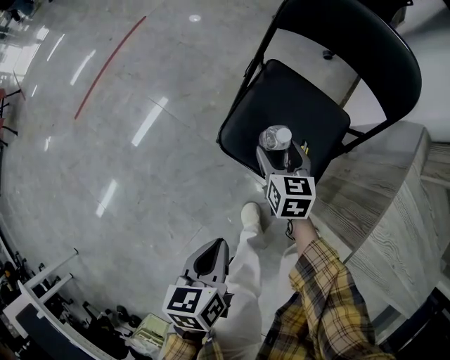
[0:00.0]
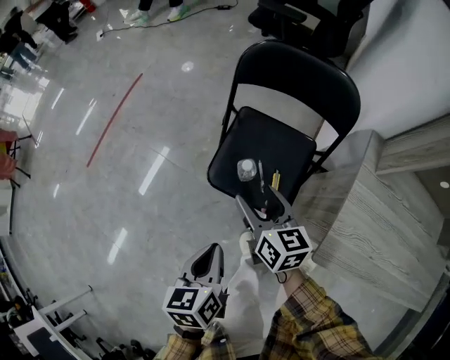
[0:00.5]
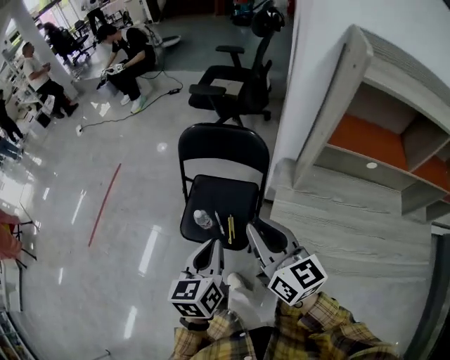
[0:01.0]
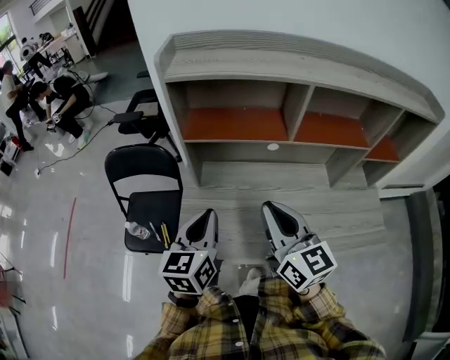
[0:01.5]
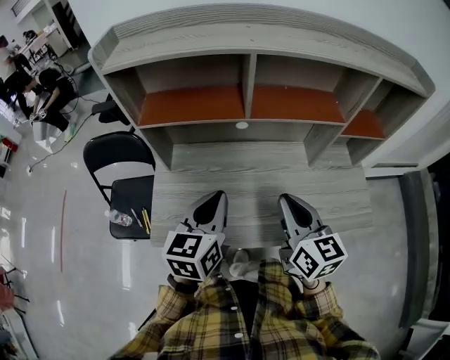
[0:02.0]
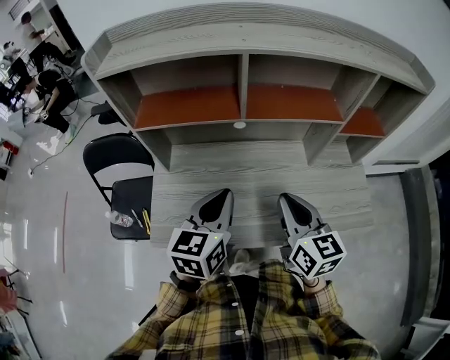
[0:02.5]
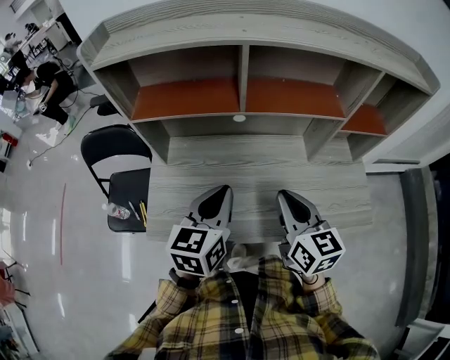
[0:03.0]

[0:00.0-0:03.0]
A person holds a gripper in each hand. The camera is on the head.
0:00.0 to 0:01.5: Both grippers are carried about 50 cm. The left gripper angles its fingers upward, by some 30 degrees. Meanwhile the right gripper angles its fingers upward, by roughly 40 degrees, and closes.
0:01.5 to 0:03.0: The right gripper shifts about 20 cm to the right and downward. Meanwhile the left gripper heads to the right, covering approximately 15 cm.

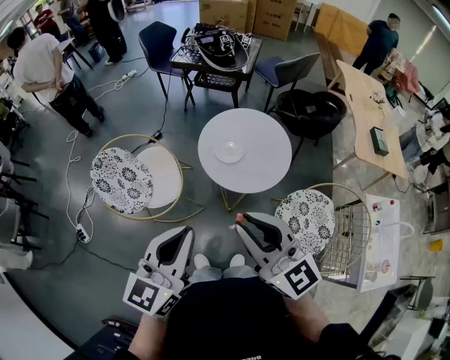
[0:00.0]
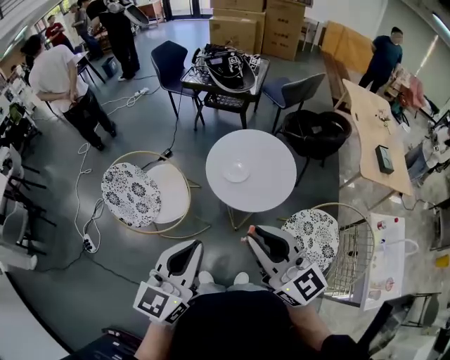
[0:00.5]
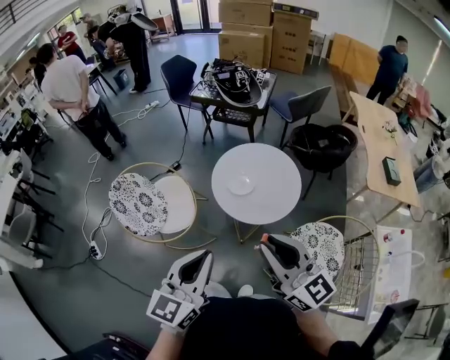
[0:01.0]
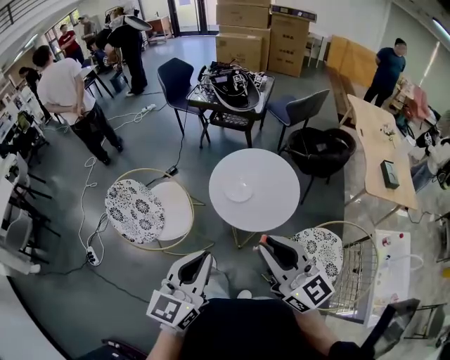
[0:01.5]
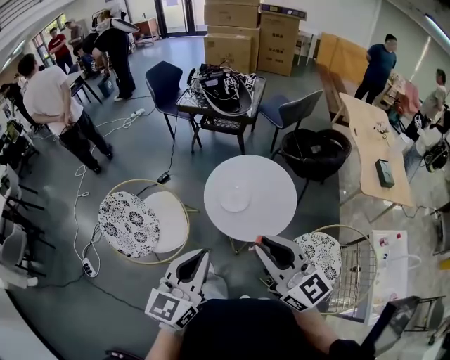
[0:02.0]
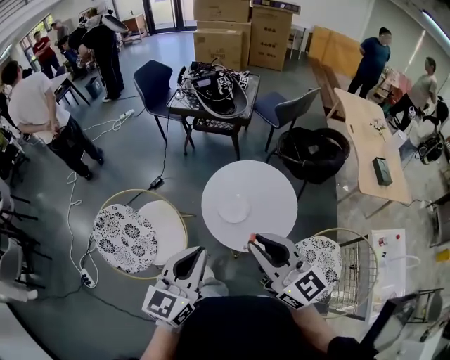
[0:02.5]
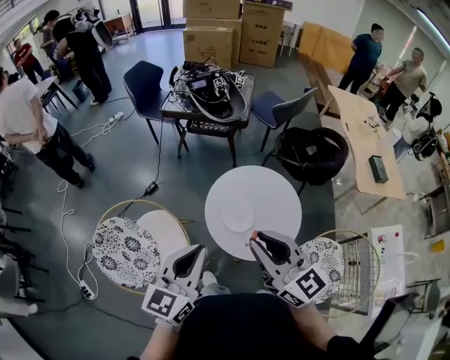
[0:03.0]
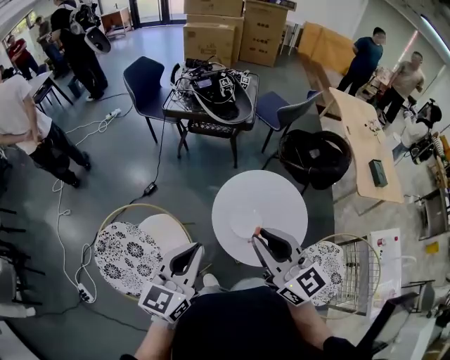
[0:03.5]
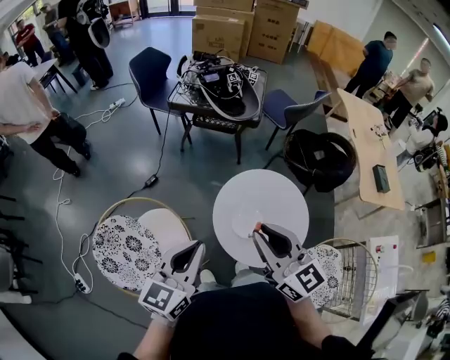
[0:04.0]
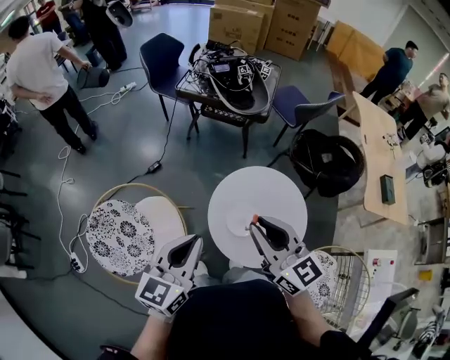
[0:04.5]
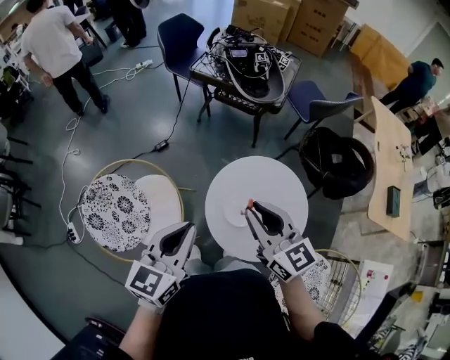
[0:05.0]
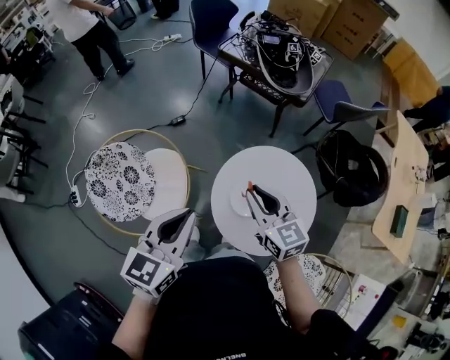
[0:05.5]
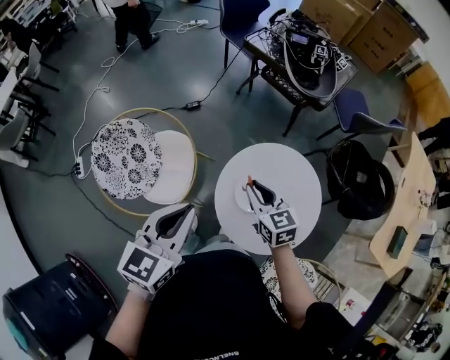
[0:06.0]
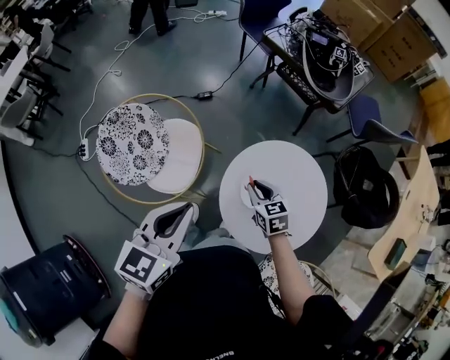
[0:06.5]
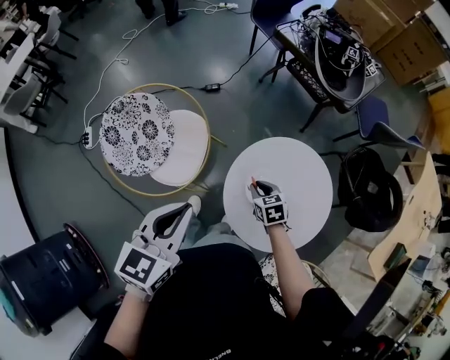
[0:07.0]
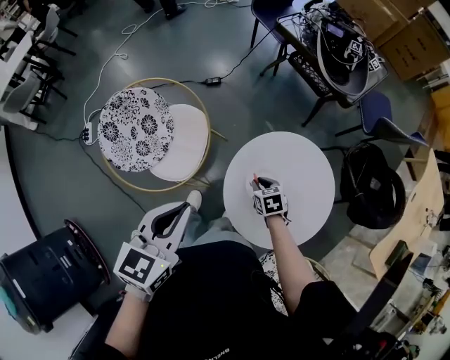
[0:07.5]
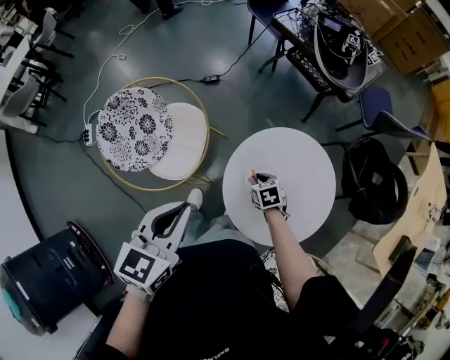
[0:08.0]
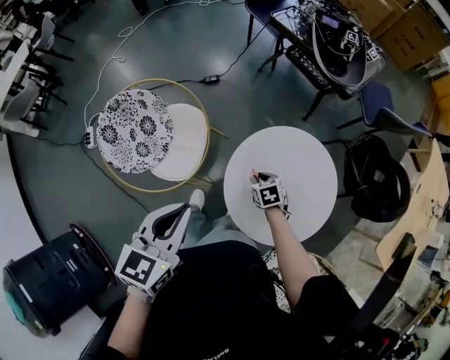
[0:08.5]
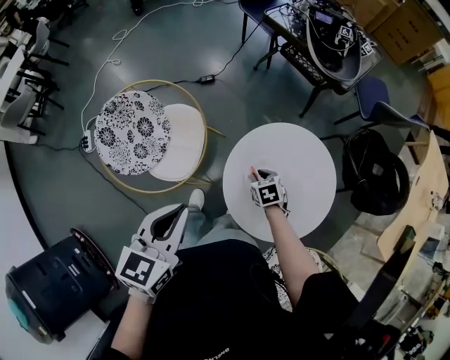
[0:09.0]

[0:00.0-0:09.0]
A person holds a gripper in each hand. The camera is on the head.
0:00.0 to 0:02.0: The left gripper goes about 10 cm forward, while the right gripper is displaced forward and to the right by roughly 10 cm.
0:02.0 to 0:04.5: Both grippers travel together forward, approximately 25 cm.
0:04.5 to 0:07.0: The left gripper shifts by approximately 10 cm, and changes its angle by approximately 30 degrees, while the right gripper shifts approximately 40 cm downward, and points its fingers roughly 50 degrees further downward.
0:07.0 to 0:09.0: The right gripper heads downward, covering roughly 5 cm.

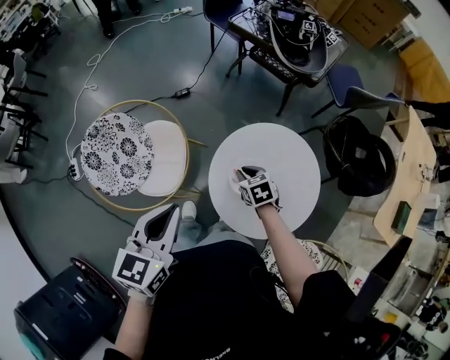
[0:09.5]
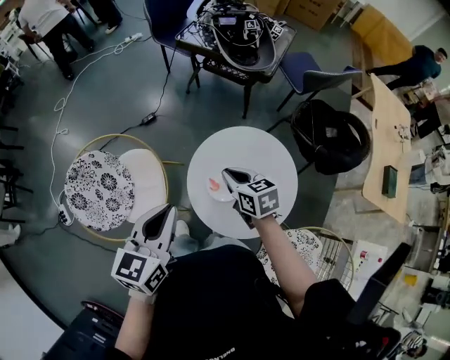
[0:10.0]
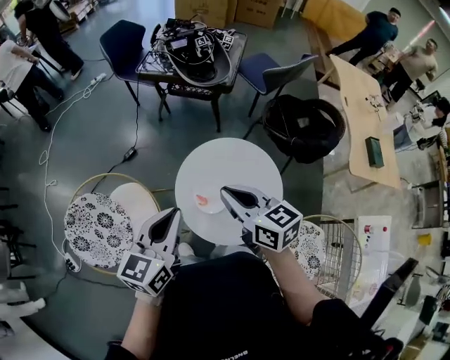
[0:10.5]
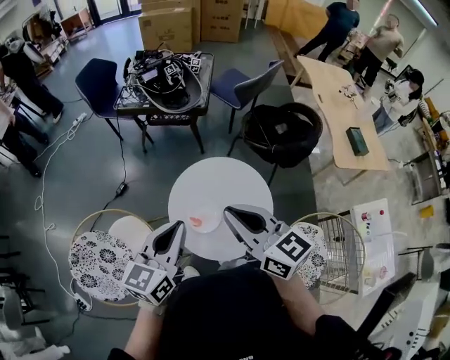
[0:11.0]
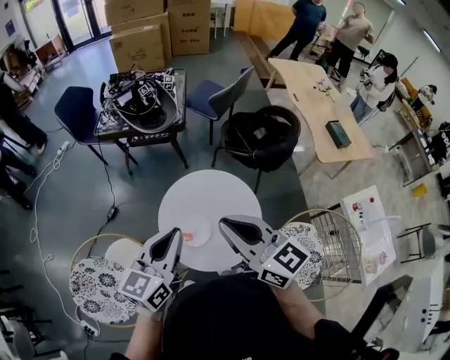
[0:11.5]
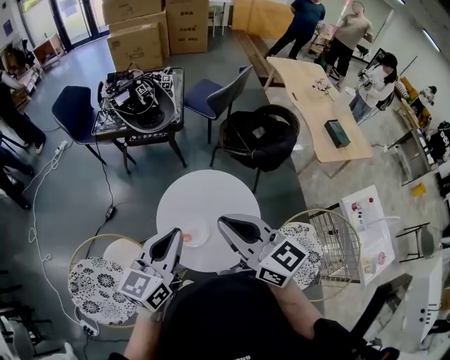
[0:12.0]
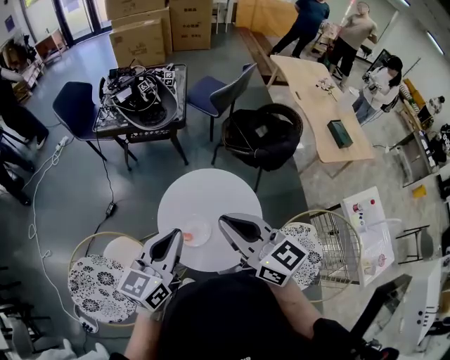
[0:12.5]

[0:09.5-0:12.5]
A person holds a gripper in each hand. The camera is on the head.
0:09.5 to 0:11.0: The right gripper heads upward, covering approximately 35 cm, and angles its fingers upward, by approximately 50 degrees. Meanwhile the left gripper moves about 15 cm, and changes its angle by approximately 40 degrees.
0:11.0 to 0:12.5: The grippers stay close to where they were, moving slightly.

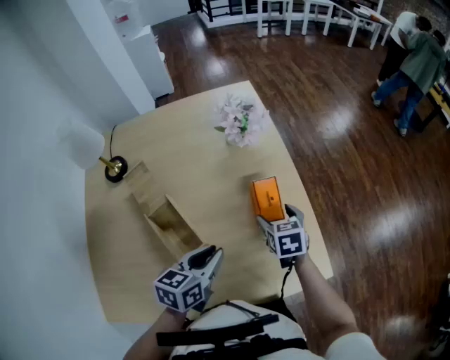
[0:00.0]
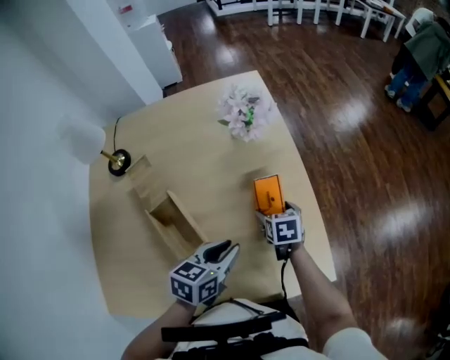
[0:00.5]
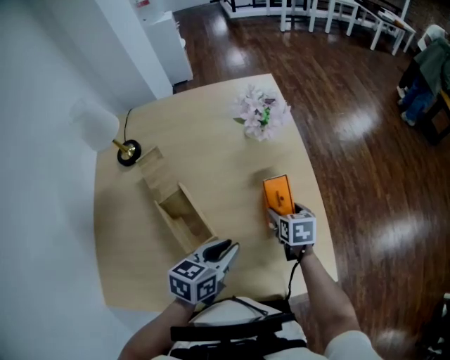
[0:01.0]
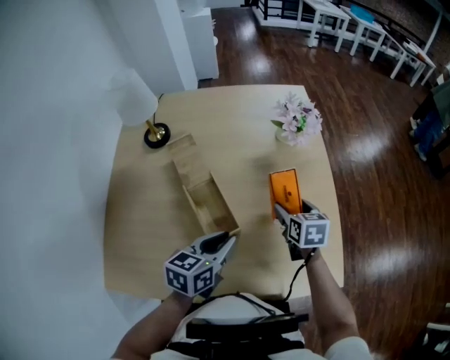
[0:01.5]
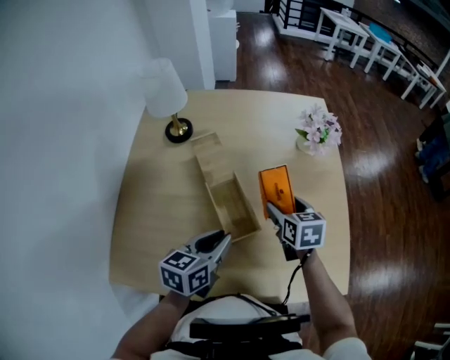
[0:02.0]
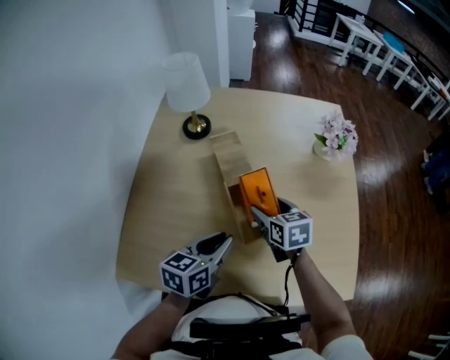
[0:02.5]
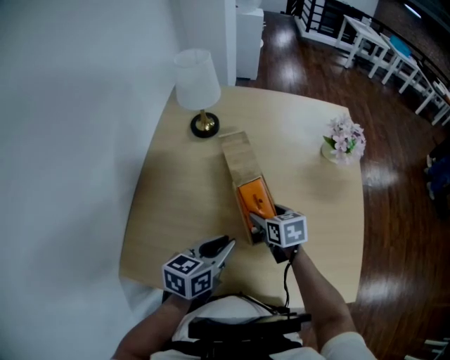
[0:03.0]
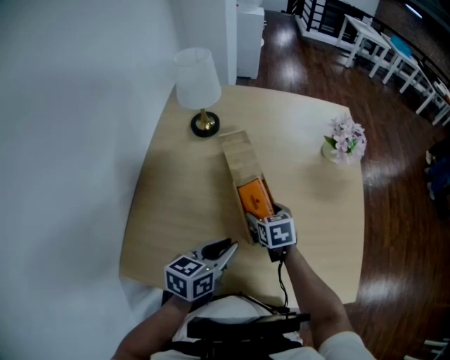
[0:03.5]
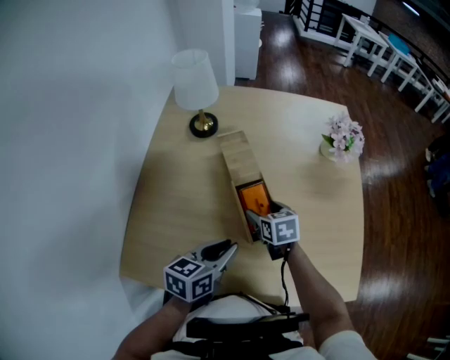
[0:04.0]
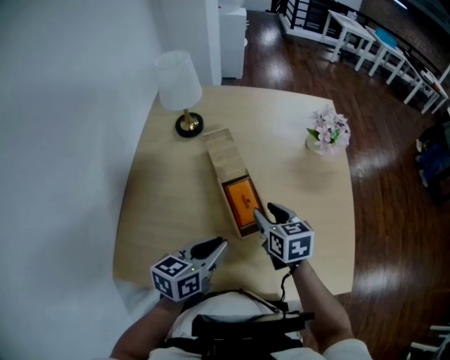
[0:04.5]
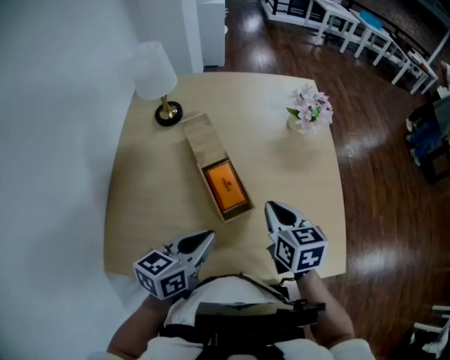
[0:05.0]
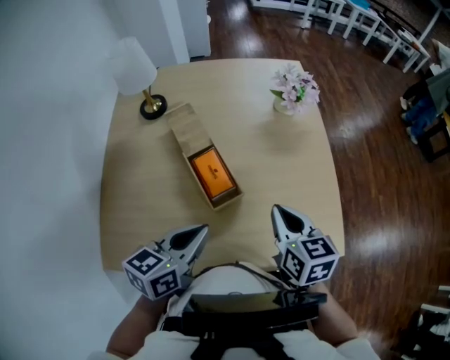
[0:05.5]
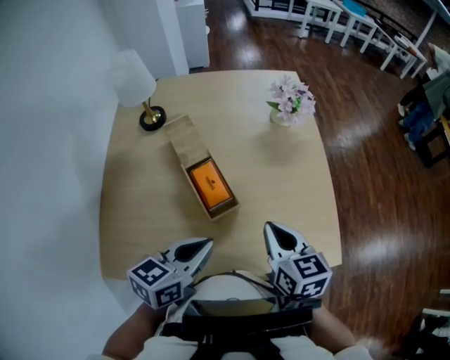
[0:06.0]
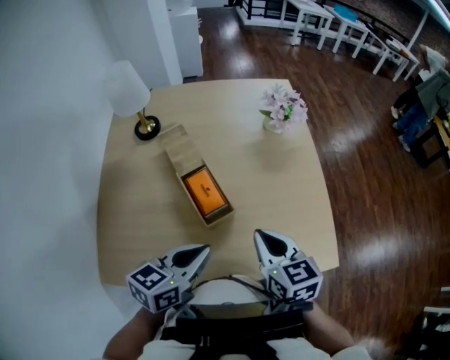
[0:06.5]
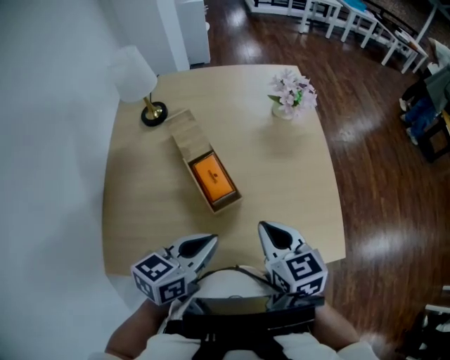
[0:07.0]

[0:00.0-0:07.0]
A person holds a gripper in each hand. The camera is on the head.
0:00.0 to 0:02.0: The two grippers go some 15 cm to the left.
0:02.0 to 0:03.5: The right gripper moves to the left and downward, roughly 15 cm; the left gripper travels to the left by approximately 5 cm.
0:03.5 to 0:05.0: The left gripper moves approximately 5 cm; the right gripper moves upward, to the right and backward, roughly 20 cm, rotates about 20 degrees, and closes up.
0:05.0 to 0:07.0: The right gripper travels backward by some 10 cm; the left gripper is displaced to the right by approximately 5 cm.

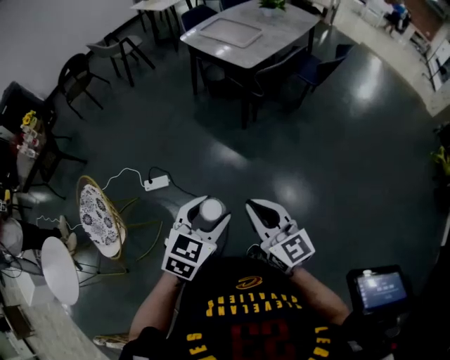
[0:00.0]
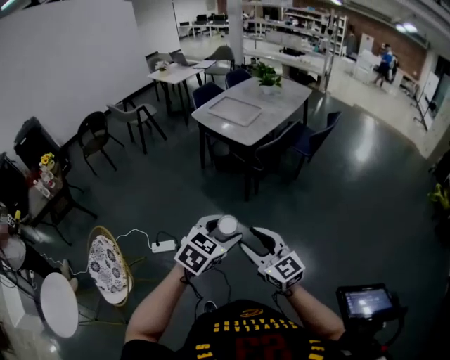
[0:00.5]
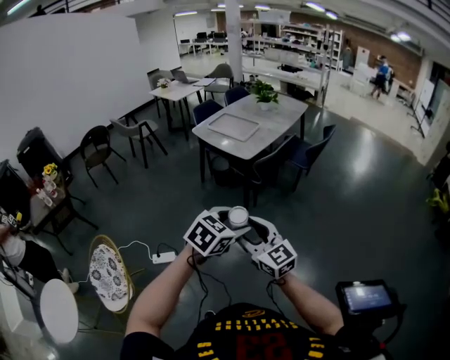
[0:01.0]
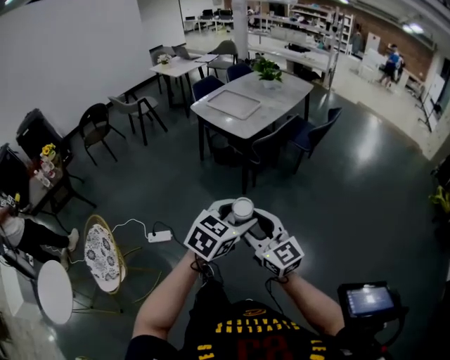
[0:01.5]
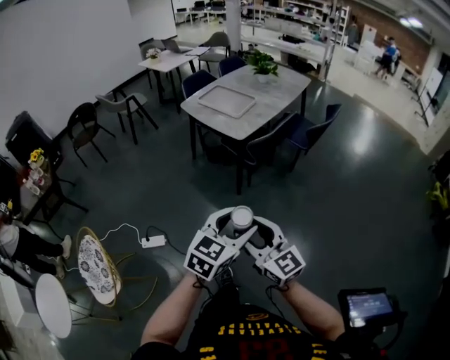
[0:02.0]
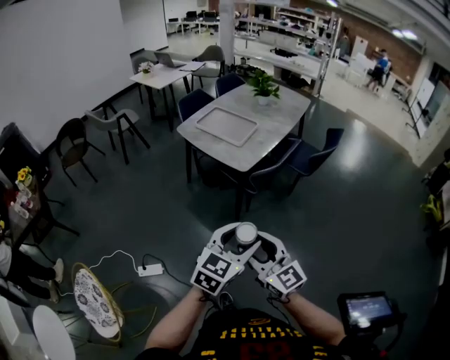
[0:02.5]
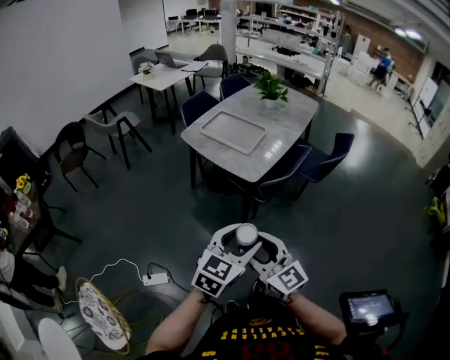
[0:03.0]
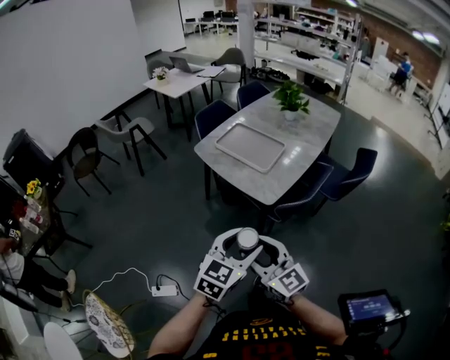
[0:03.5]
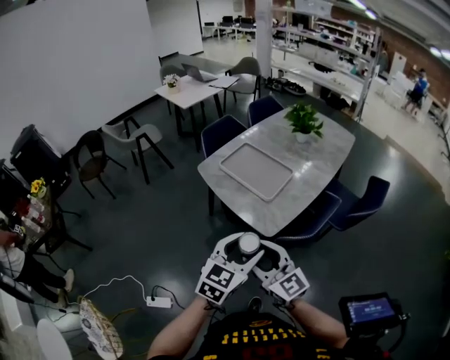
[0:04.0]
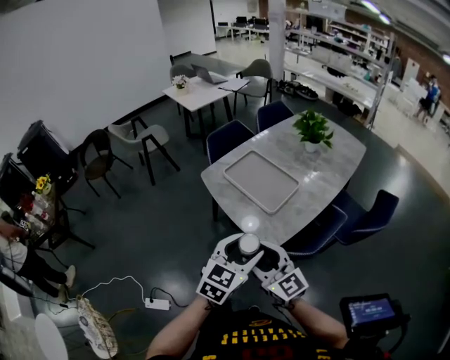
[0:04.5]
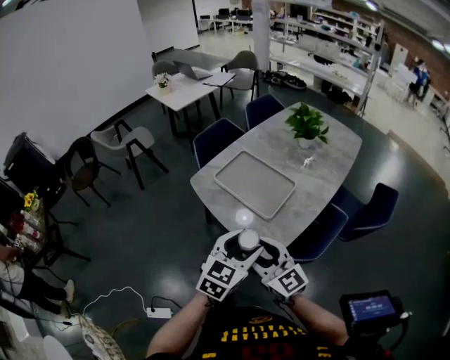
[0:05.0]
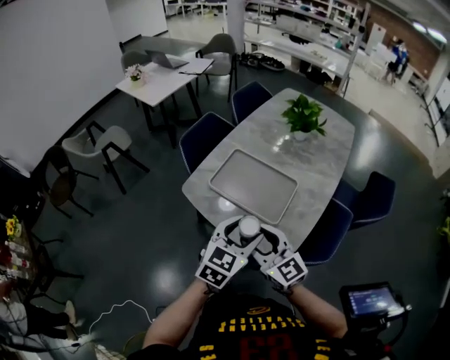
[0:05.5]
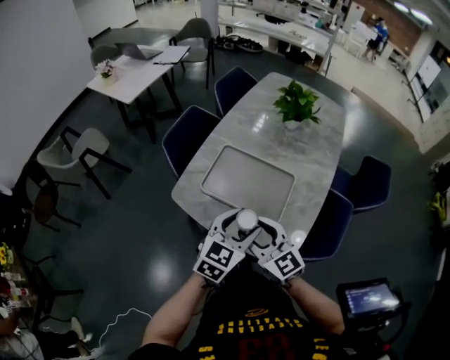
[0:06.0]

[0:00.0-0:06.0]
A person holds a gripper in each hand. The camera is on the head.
0:00.0 to 0:02.0: The left gripper goes some 20 cm forward, to the right and upward; the right gripper travels forward and upward by some 15 cm, and opens its fingers.
0:02.0 to 0:04.0: The two grippers travel together, forward, some 50 cm.
0:04.0 to 0:06.0: The grippers both shift forward by some 35 cm. The right gripper turns by roughly 20 degrees.
